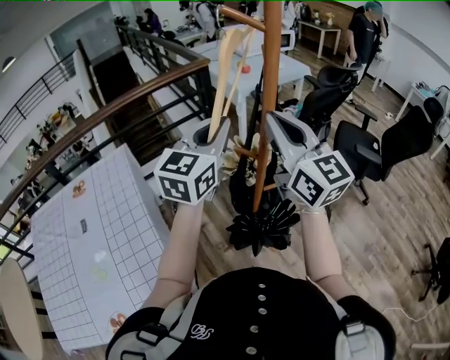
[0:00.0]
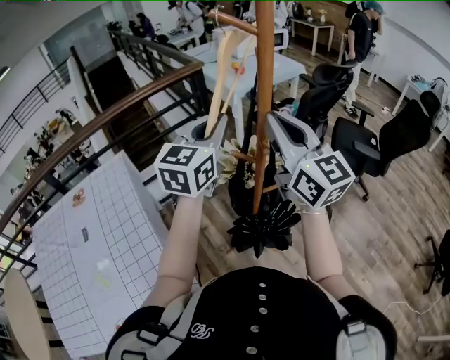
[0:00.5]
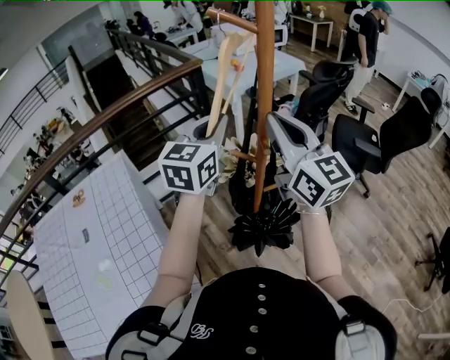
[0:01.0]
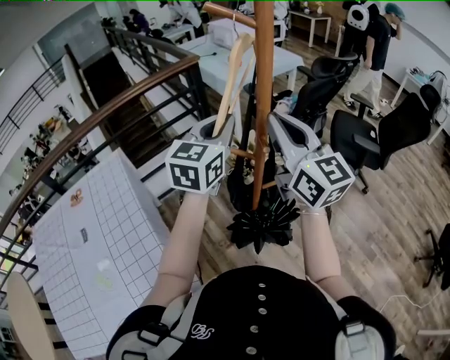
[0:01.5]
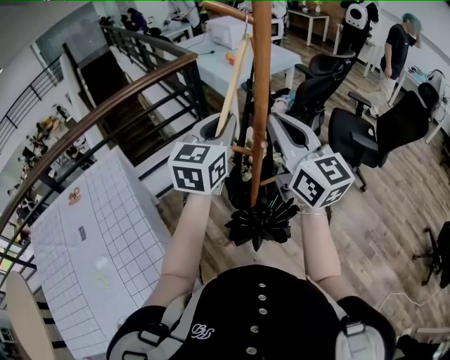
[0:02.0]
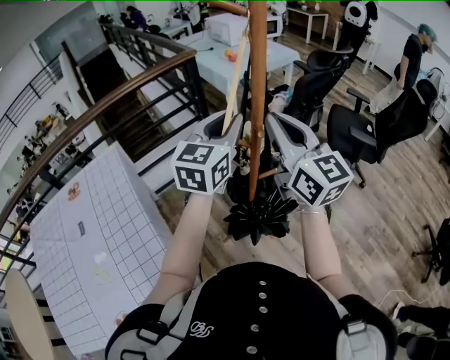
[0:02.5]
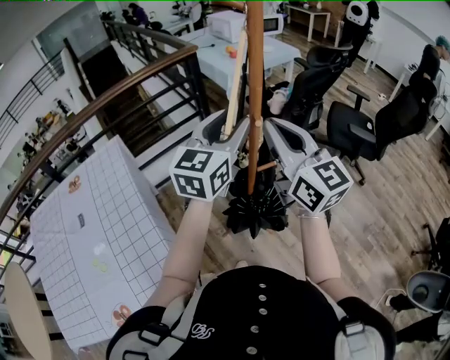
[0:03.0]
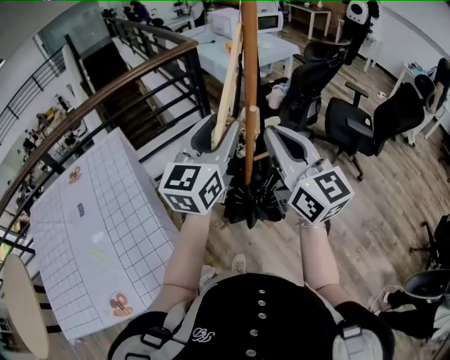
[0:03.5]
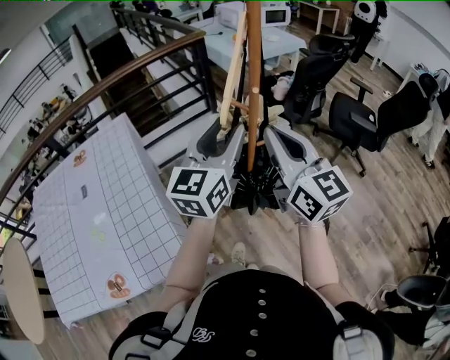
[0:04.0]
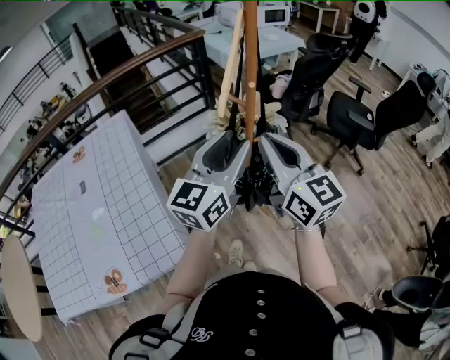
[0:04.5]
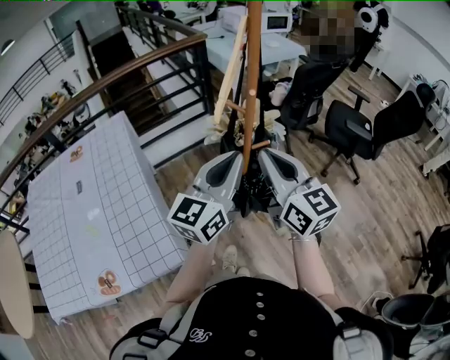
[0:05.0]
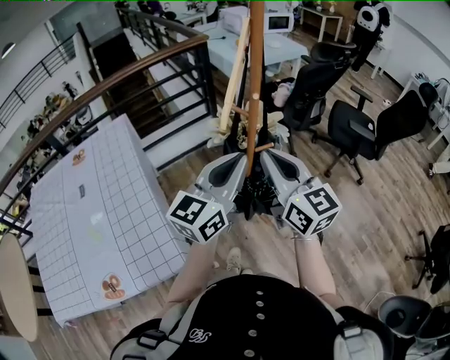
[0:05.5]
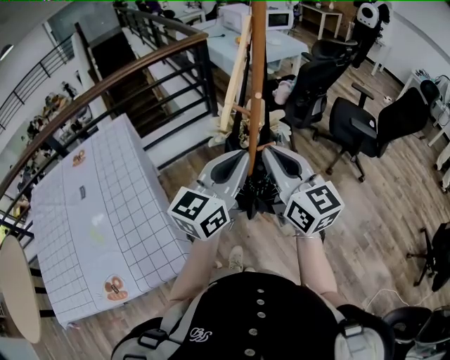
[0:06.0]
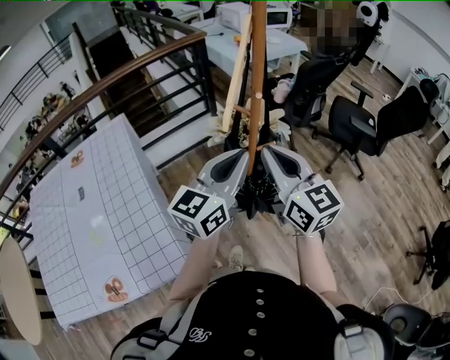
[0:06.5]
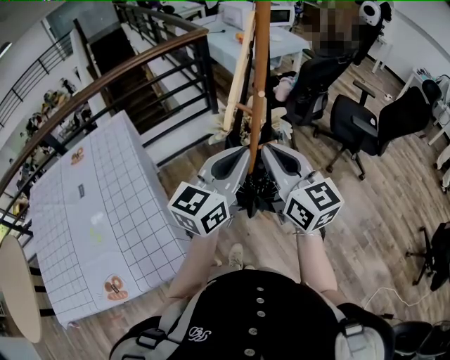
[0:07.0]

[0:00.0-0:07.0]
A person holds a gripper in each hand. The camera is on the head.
0:00.0 to 0:02.0: The left gripper changes place by some 5 cm.
0:02.0 to 0:03.5: Both grippers move backward, roughly 10 cm. The left gripper opens its fingers.
0:03.5 to 0:05.0: The grippers both shift backward and downward by roughly 10 cm. The left gripper closes.
0:05.0 to 0:07.0: The grippers stay close to where they were, moving slightly.

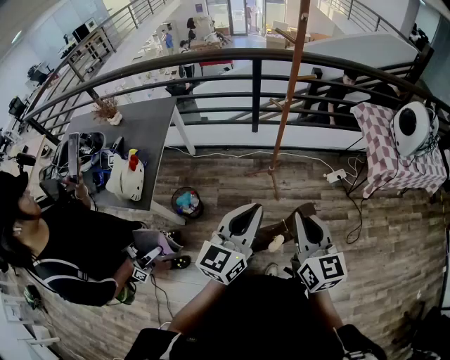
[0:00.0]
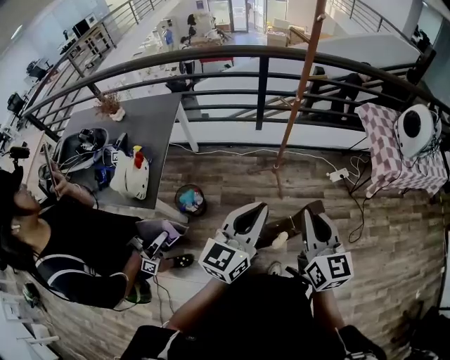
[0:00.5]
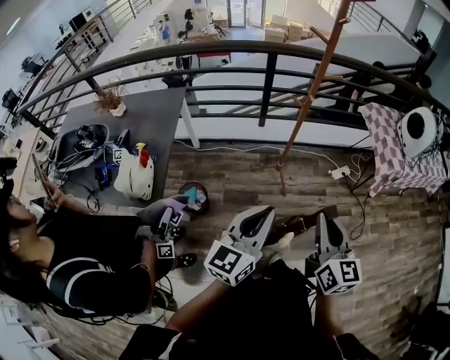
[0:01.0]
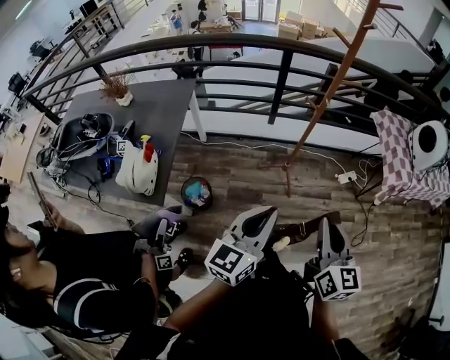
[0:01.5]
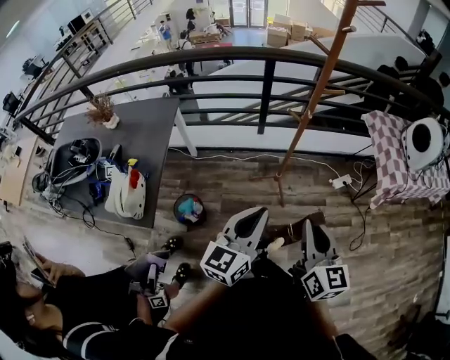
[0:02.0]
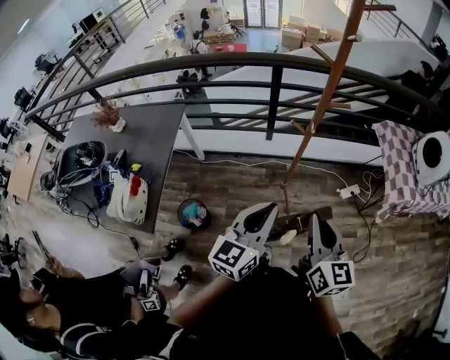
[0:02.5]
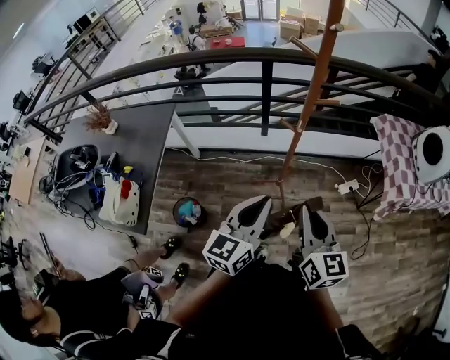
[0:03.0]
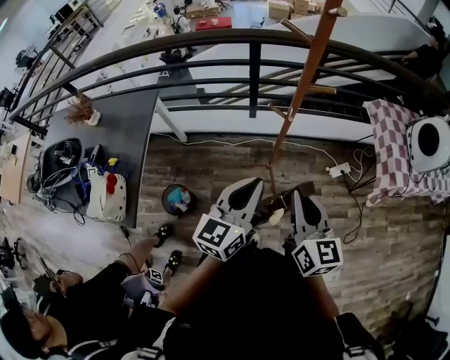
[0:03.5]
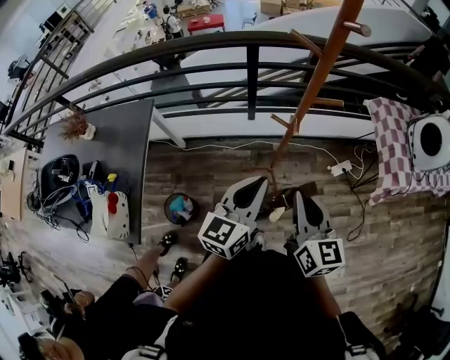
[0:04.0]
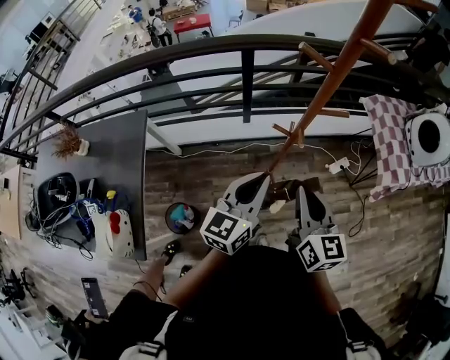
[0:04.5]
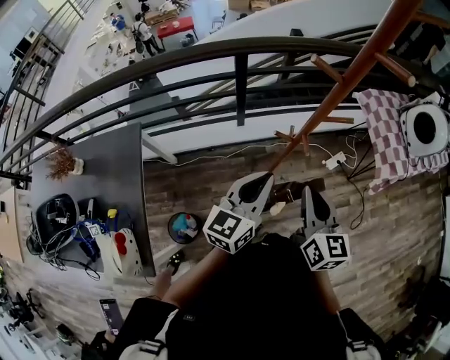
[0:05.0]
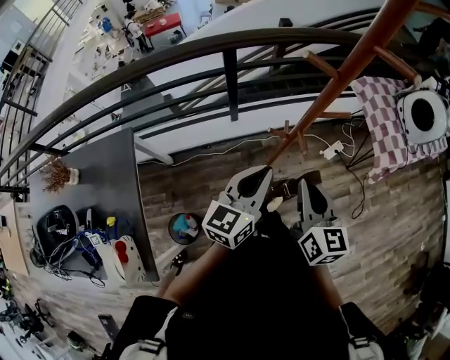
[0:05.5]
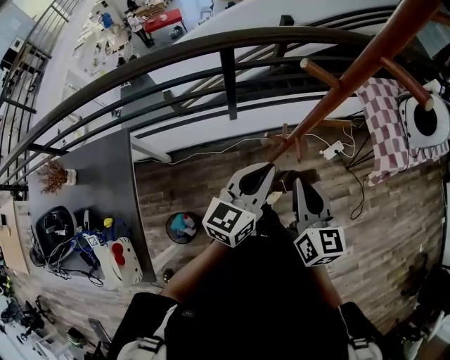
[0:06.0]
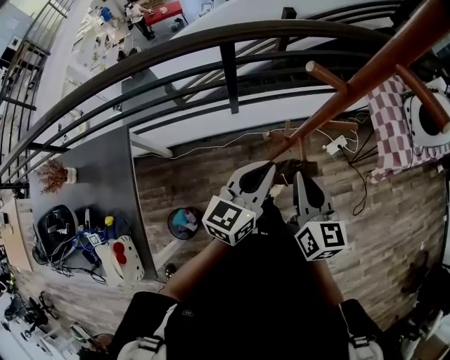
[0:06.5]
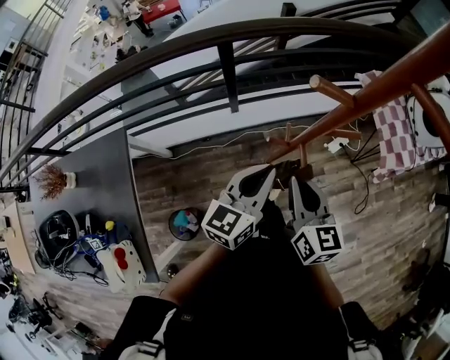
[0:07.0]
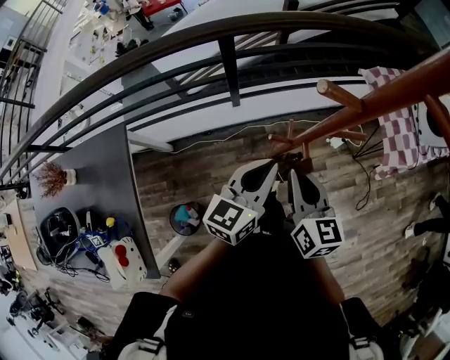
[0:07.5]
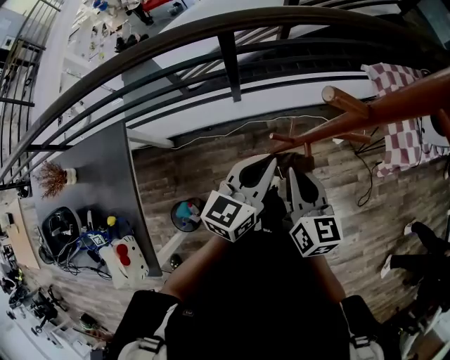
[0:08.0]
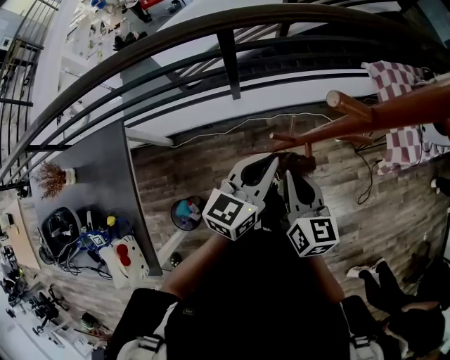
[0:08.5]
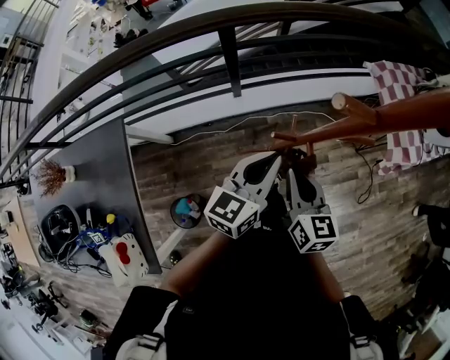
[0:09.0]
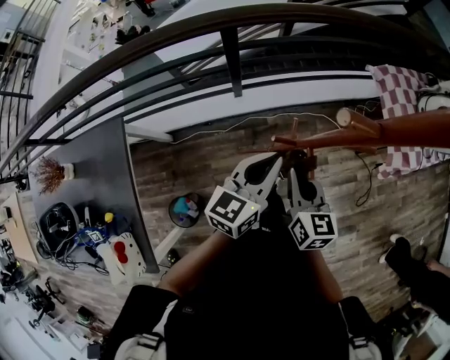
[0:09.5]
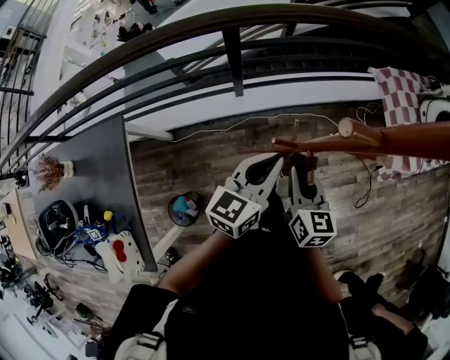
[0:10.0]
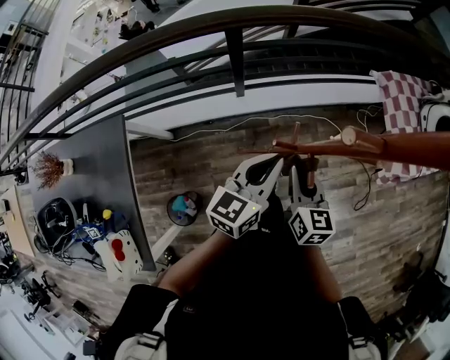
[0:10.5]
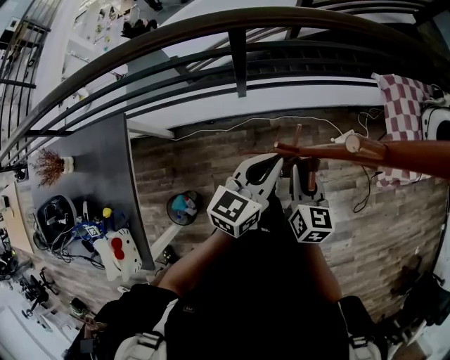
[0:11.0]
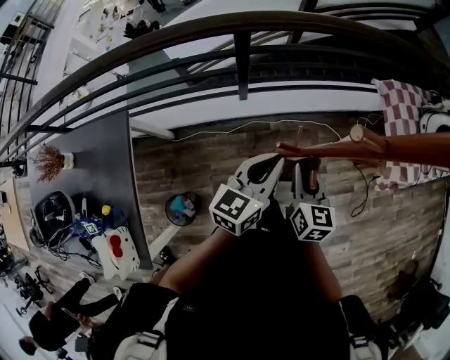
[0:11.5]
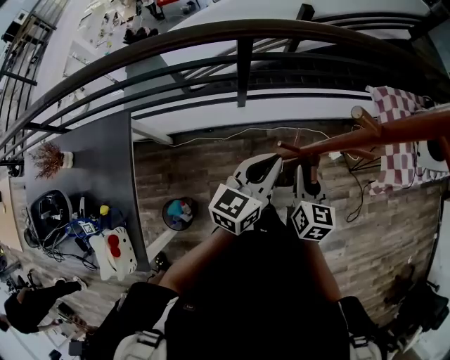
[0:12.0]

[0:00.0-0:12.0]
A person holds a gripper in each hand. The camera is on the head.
0:00.0 to 0:02.0: Both grippers move forward and to the left, roughly 10 cm.
0:02.0 to 0:04.0: The grippers both shift forward by about 20 cm.
0:04.0 to 0:06.0: The two grippers go approximately 10 cm forward.
0:06.0 to 0:08.0: The left gripper shifts by approximately 5 cm; the right gripper shifts by roughly 5 cm.
0:08.0 to 0:10.0: The right gripper travels downward by about 5 cm.
0:10.0 to 0:12.0: The grippers stay close to where they were, moving slightly.

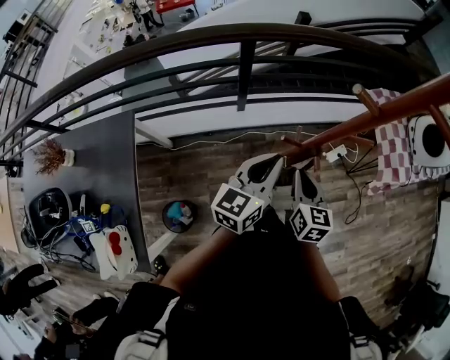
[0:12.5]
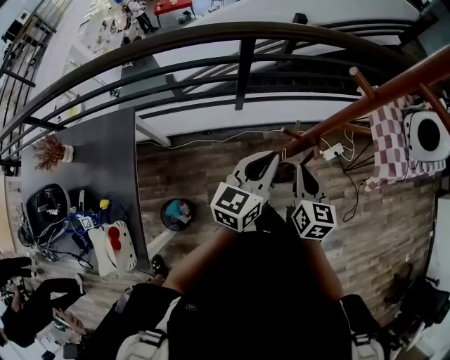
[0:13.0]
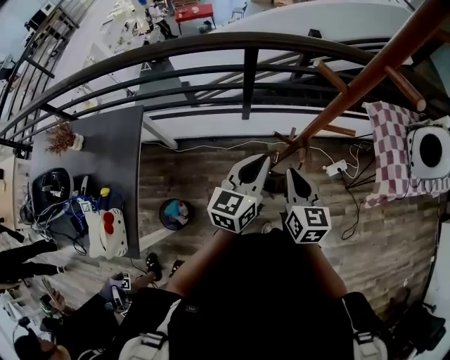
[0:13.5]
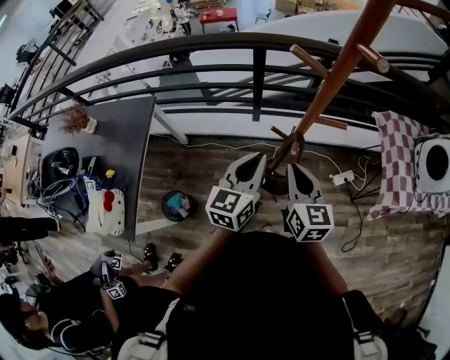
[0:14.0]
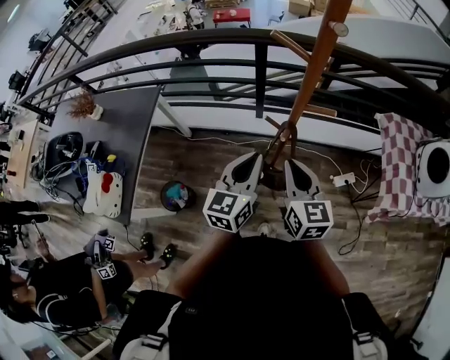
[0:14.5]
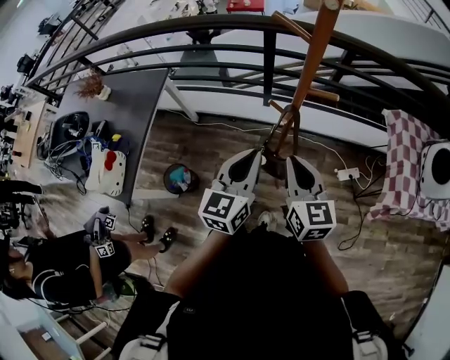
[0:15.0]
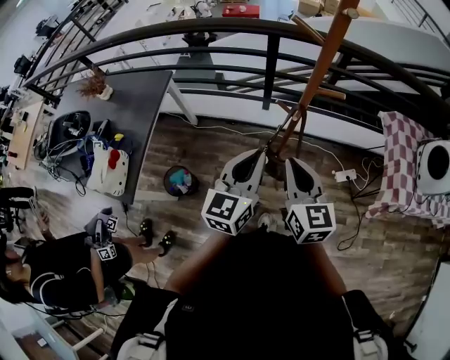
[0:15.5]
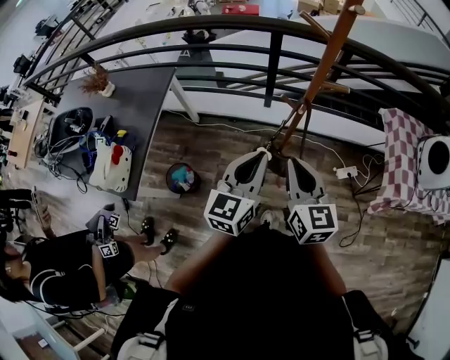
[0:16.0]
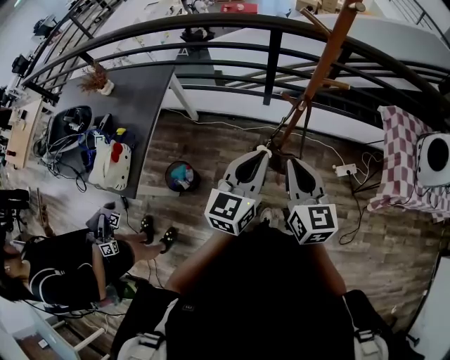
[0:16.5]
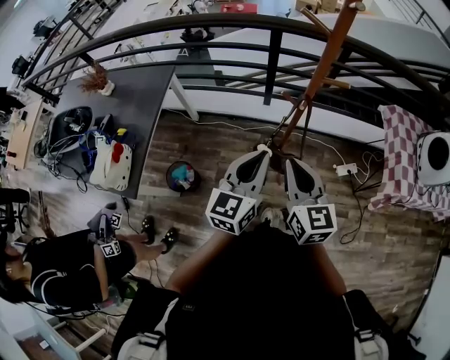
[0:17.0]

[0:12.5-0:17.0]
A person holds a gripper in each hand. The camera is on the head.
0:12.5 to 0:14.5: The right gripper is displaced upward by approximately 10 cm, and swivels some 30 degrees. The left gripper changes place by roughly 10 cm, and turns by some 30 degrees.
0:14.5 to 0:17.0: Both grippers move backward, approximately 10 cm.

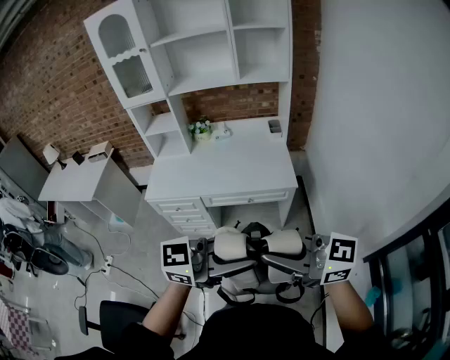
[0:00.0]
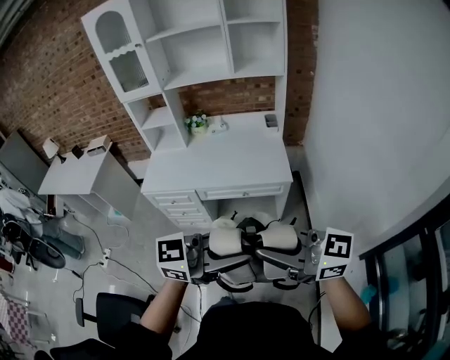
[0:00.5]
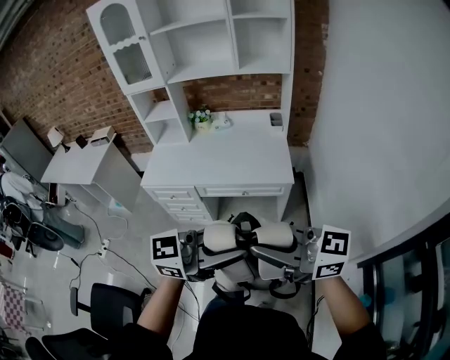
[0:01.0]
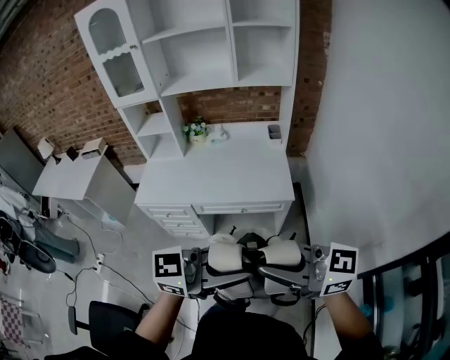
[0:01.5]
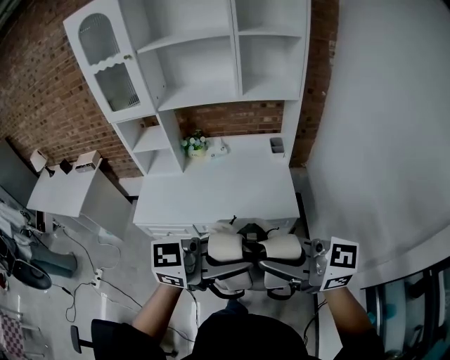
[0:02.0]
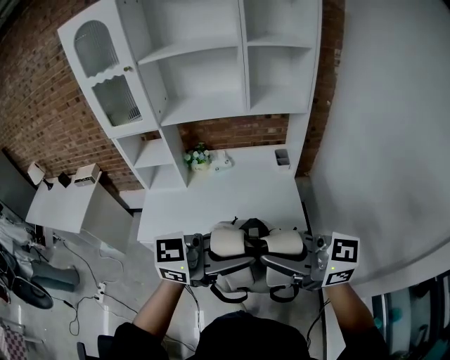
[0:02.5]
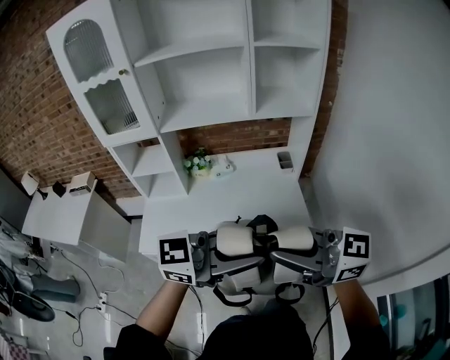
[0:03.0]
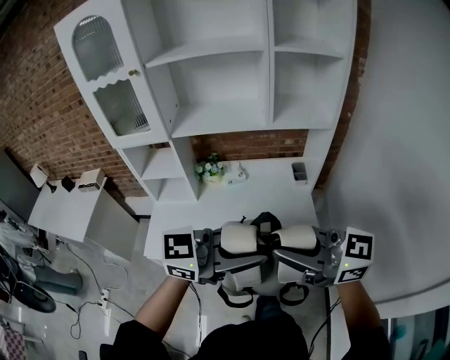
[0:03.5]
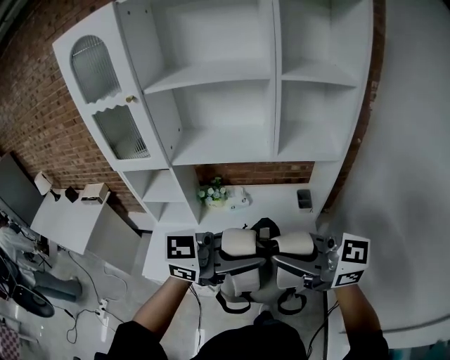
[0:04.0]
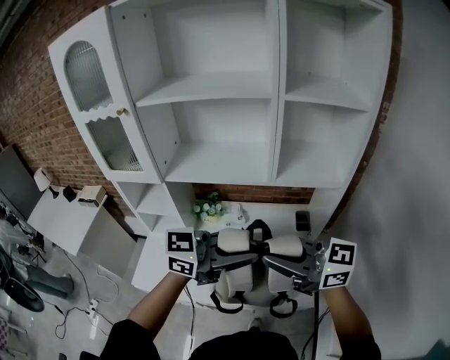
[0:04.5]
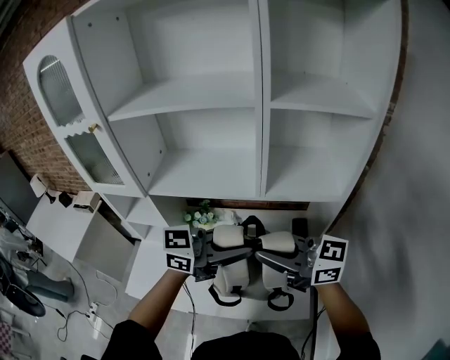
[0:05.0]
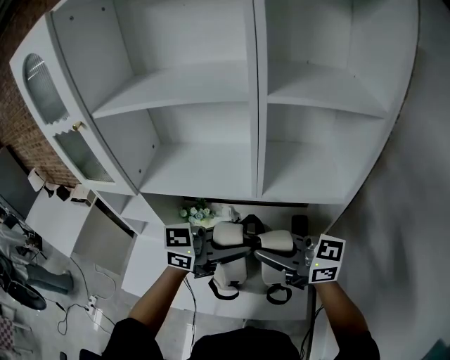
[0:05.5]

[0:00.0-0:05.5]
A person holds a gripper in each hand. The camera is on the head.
0:00.0 to 0:02.0: The right gripper moves approximately 20 cm. Meanwhile the left gripper ends up approximately 20 cm from where it was.
0:02.0 to 0:03.5: The left gripper ends up about 20 cm from where it was. Meanwhile the right gripper changes place by roughly 20 cm.
0:03.5 to 0:05.5: The right gripper ends up roughly 35 cm from where it was. The left gripper shifts by about 35 cm.
